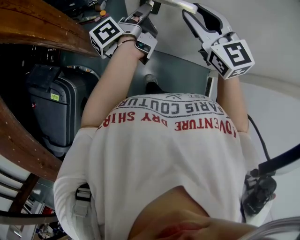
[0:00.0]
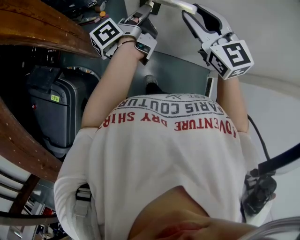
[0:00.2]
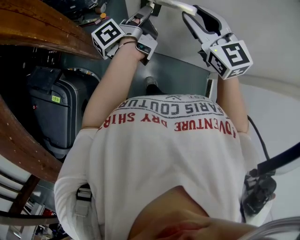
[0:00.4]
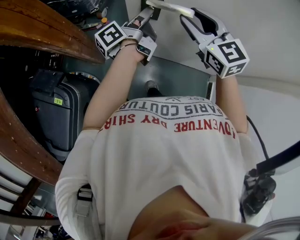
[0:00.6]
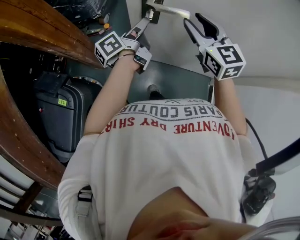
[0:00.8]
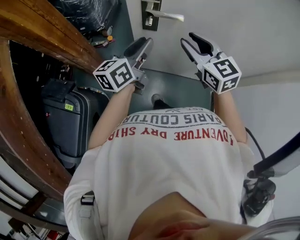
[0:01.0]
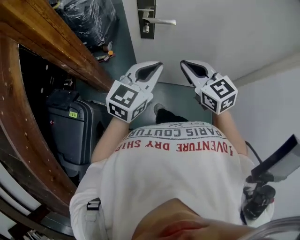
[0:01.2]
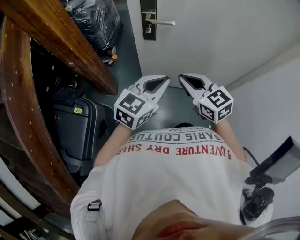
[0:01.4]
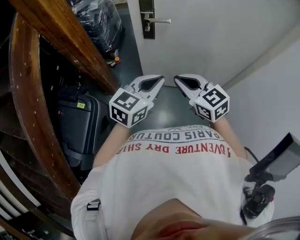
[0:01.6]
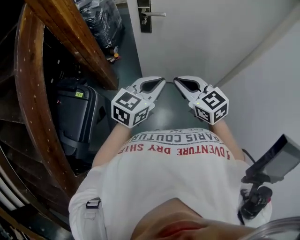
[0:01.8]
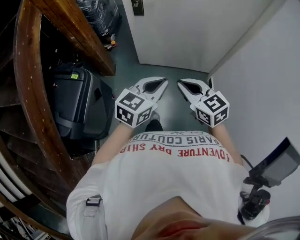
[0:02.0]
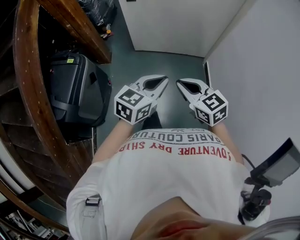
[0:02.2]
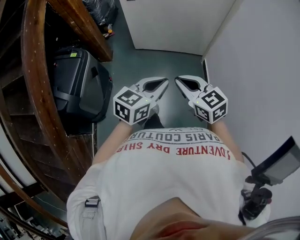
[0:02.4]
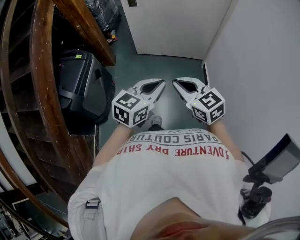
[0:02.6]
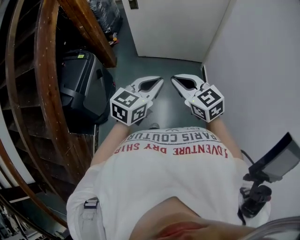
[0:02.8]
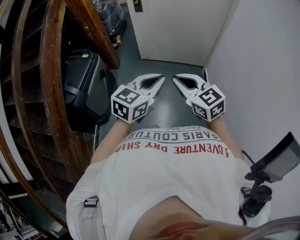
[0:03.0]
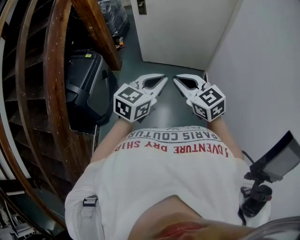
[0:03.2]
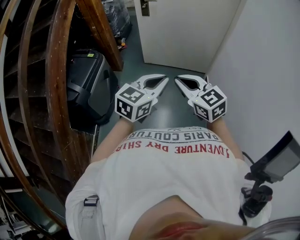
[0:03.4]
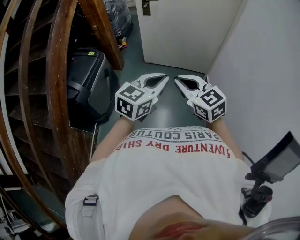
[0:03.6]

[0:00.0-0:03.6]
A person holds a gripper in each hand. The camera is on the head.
0.0 to 1.8 s: The pair of grippers is taken backward, roughly 50 cm. The right gripper closes. Meanwhile the left gripper rotates around the line of its fingers by some 80 degrees, clockwise from behind, and opens and closes again.
1.8 to 3.6 s: The two grippers travel together, backward, about 40 cm.

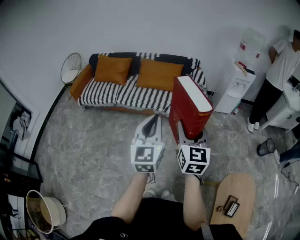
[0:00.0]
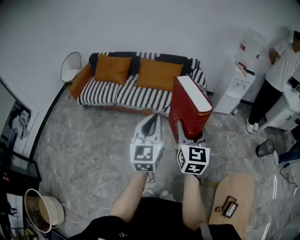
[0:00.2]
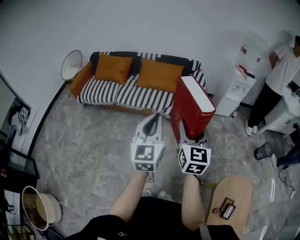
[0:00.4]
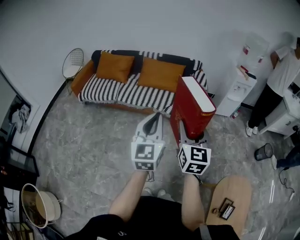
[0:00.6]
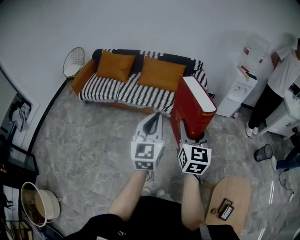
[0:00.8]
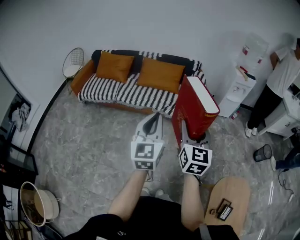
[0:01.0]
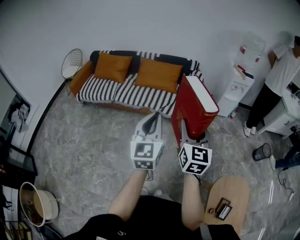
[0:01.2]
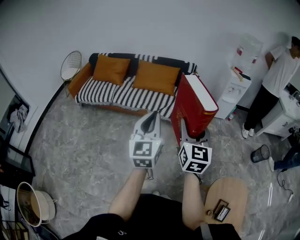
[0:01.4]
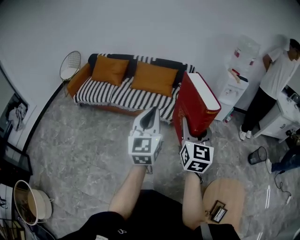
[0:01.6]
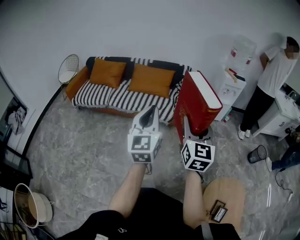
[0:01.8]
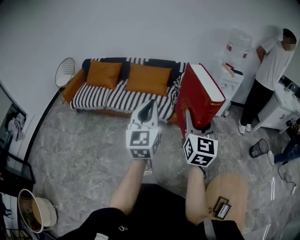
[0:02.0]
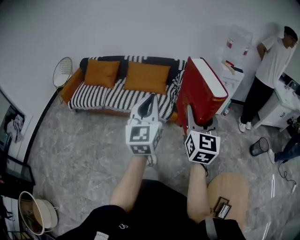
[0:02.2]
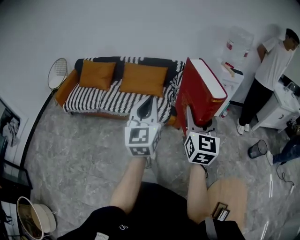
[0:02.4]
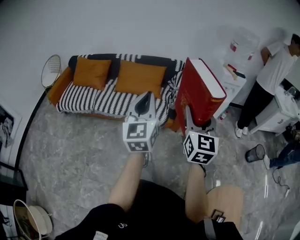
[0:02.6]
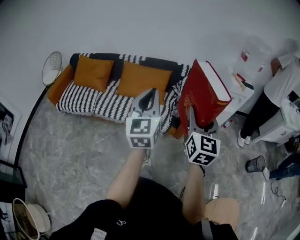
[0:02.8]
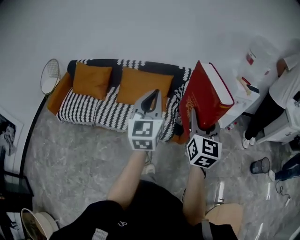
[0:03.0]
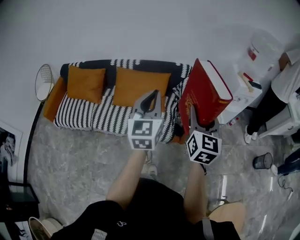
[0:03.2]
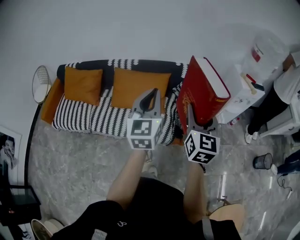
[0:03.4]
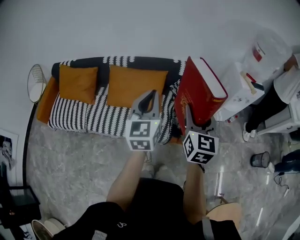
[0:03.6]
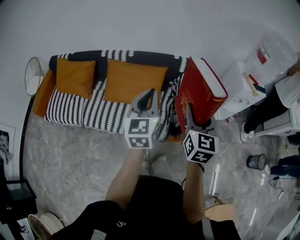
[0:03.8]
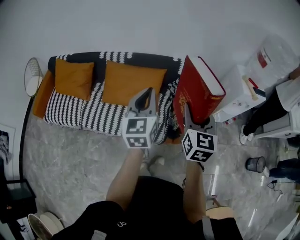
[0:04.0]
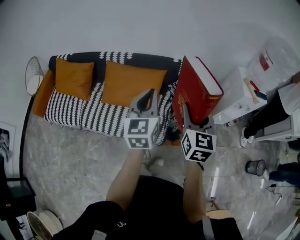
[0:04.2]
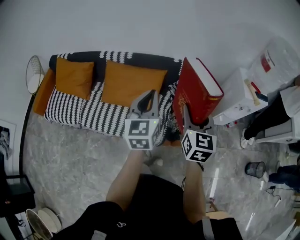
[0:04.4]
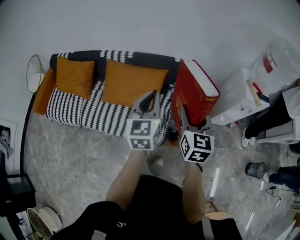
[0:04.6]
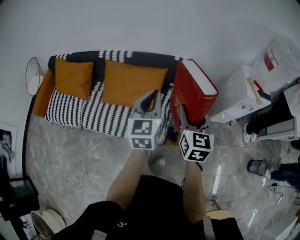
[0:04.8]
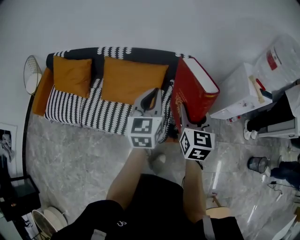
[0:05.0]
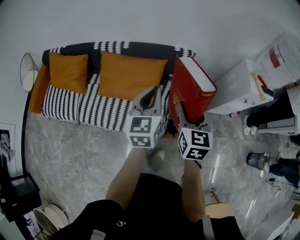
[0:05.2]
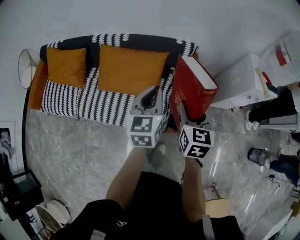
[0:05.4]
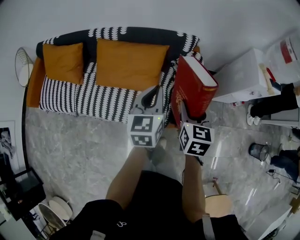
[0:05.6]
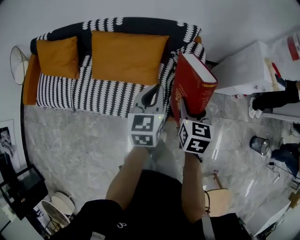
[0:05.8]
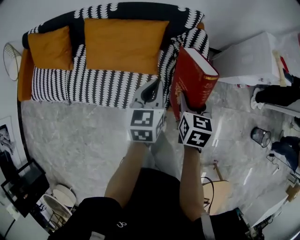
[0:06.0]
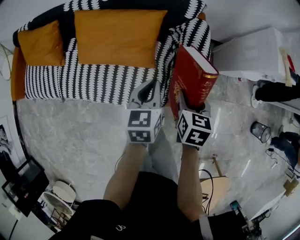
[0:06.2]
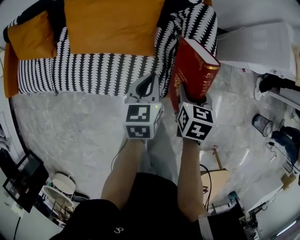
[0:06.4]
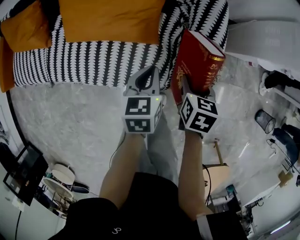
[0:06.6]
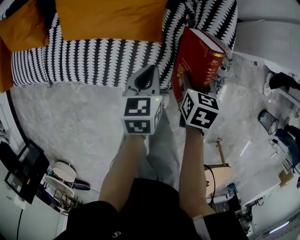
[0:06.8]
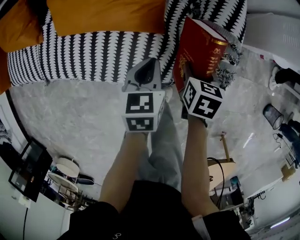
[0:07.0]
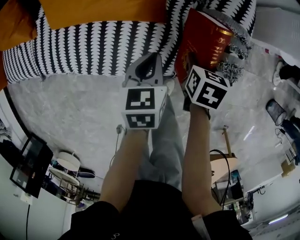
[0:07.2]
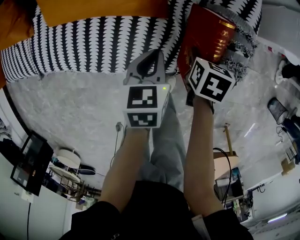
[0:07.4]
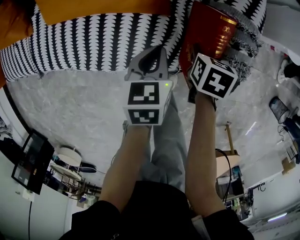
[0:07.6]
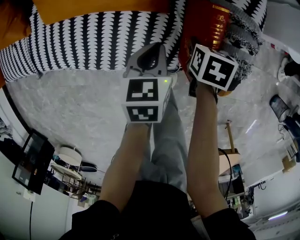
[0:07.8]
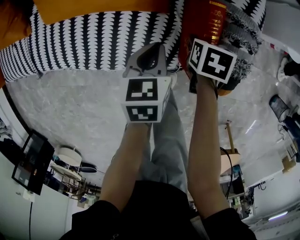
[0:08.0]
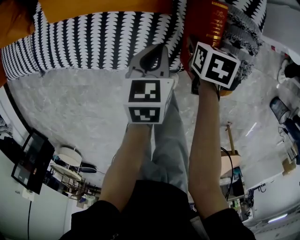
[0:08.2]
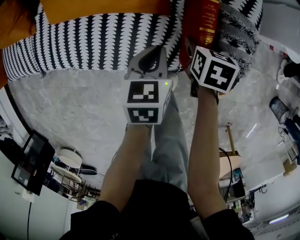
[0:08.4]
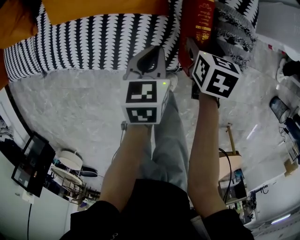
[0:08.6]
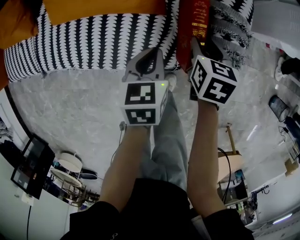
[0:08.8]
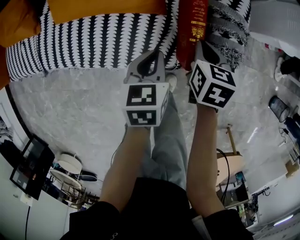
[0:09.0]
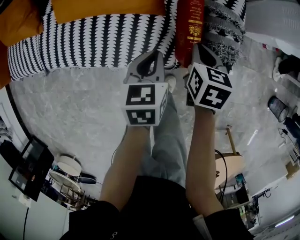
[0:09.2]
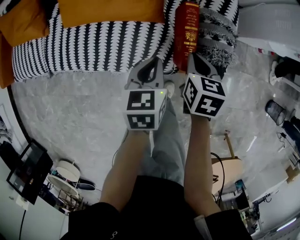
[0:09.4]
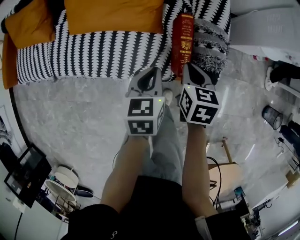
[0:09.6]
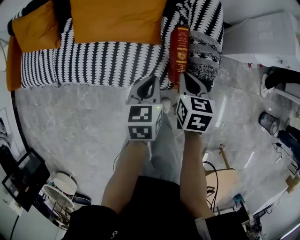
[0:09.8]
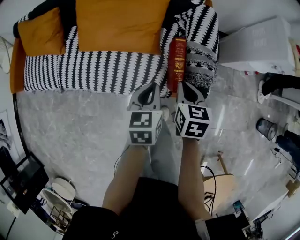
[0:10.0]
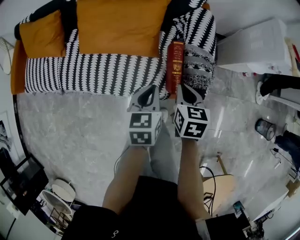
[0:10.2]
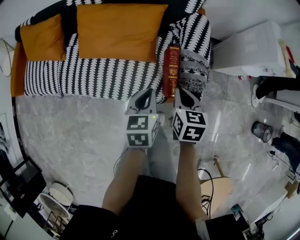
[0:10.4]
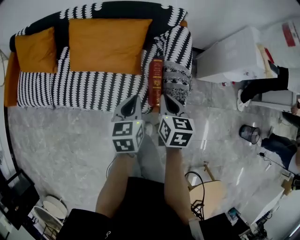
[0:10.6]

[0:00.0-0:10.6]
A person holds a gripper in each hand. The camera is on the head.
0.0 to 1.6 s: The two grippers go roughly 5 cm to the right.
1.6 to 3.0 s: Both grippers travel together forward, approximately 40 cm.
3.0 to 4.6 s: The left gripper heads forward and downward, covering about 25 cm. Meanwhile the right gripper heads forward, covering about 25 cm.
4.6 to 6.0 s: Both grippers move downward, roughly 20 cm. The right gripper swivels some 30 degrees; the left gripper rotates approximately 20 degrees.
6.0 to 7.6 s: The two grippers go about 30 cm downward. The left gripper swivels some 20 degrees. The right gripper swivels approximately 30 degrees.
7.6 to 9.0 s: The right gripper goes roughly 10 cm upward, and closes. Meanwhile the left gripper shifts by roughly 5 cm.
9.0 to 10.6 s: Both grippers travel together upward, approximately 20 cm.

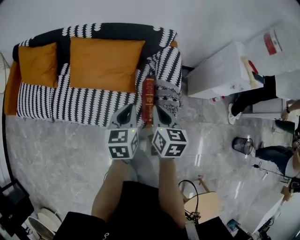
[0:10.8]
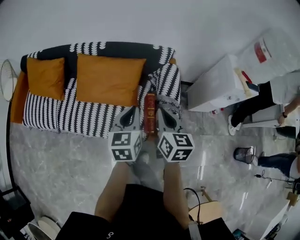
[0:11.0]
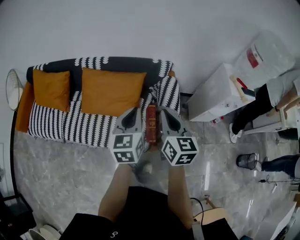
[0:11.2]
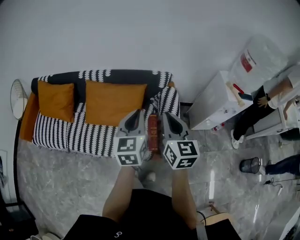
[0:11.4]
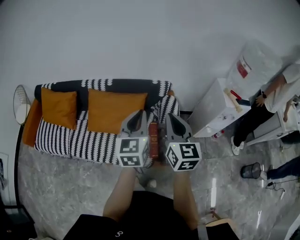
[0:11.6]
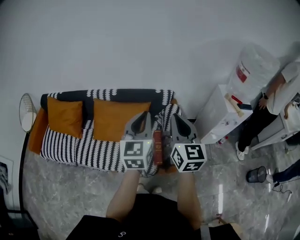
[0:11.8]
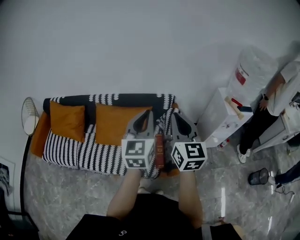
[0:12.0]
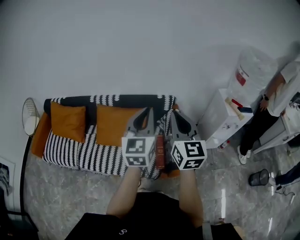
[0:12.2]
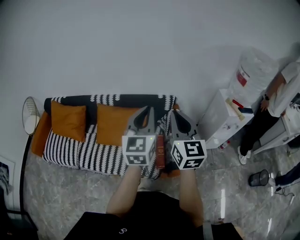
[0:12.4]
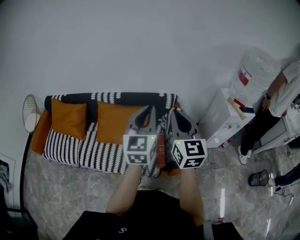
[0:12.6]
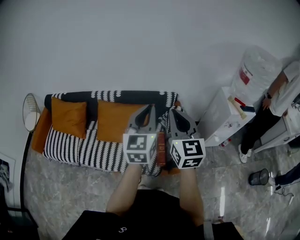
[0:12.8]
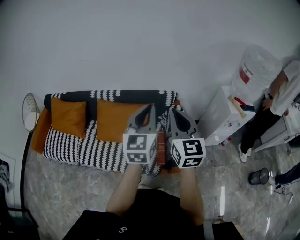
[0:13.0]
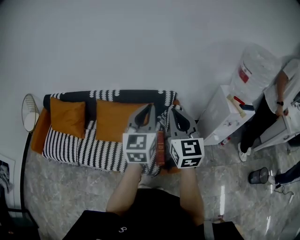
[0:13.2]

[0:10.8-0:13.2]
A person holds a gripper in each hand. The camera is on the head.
10.8 to 12.0 s: Both grippers travel together upward, about 30 cm. The left gripper rotates some 30 degrees; the right gripper tips its fingers upward by some 30 degrees.
12.0 to 13.2 s: There are only small adjustments of the grippers.

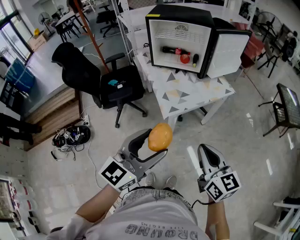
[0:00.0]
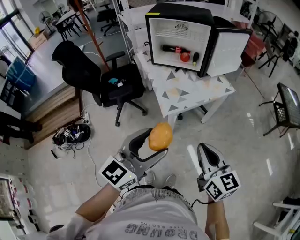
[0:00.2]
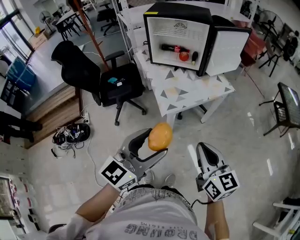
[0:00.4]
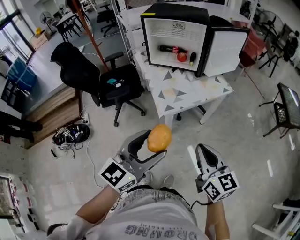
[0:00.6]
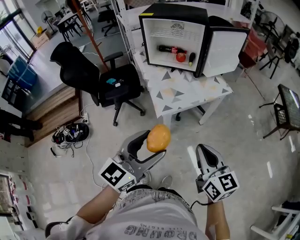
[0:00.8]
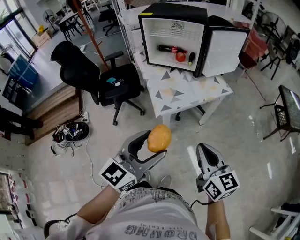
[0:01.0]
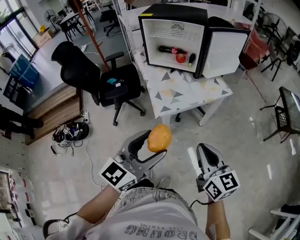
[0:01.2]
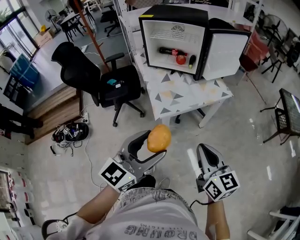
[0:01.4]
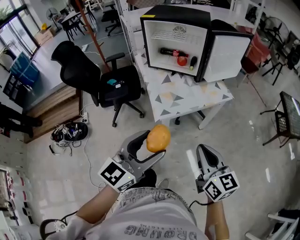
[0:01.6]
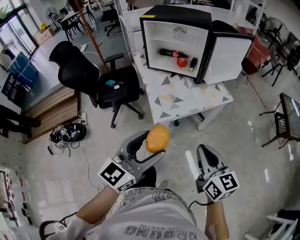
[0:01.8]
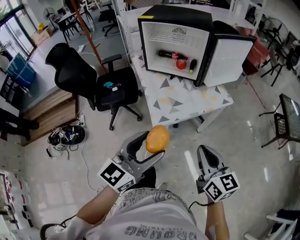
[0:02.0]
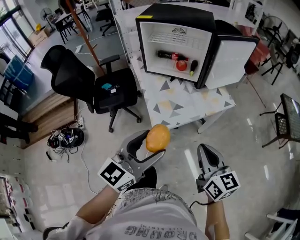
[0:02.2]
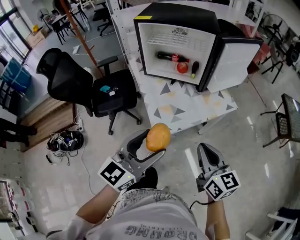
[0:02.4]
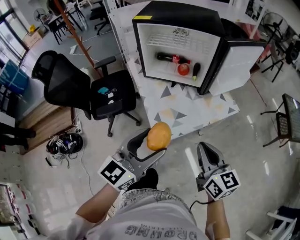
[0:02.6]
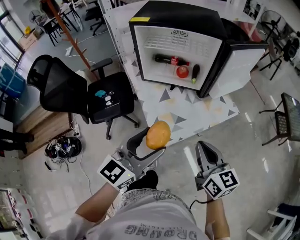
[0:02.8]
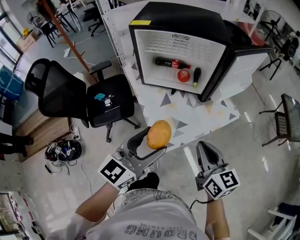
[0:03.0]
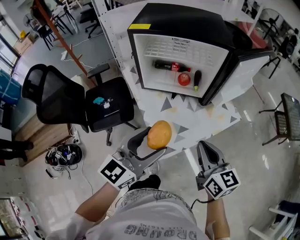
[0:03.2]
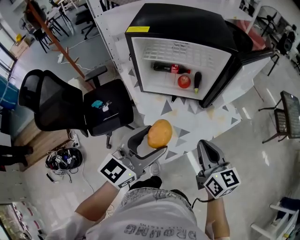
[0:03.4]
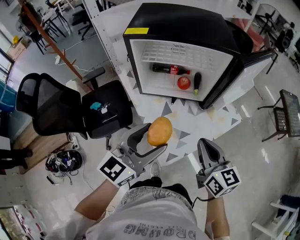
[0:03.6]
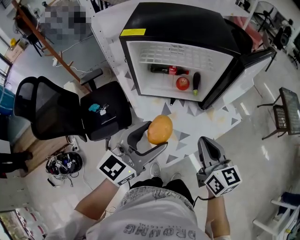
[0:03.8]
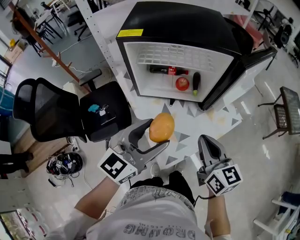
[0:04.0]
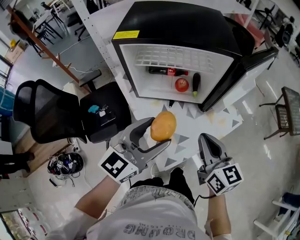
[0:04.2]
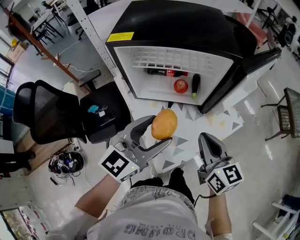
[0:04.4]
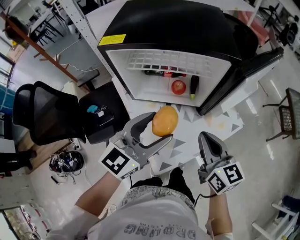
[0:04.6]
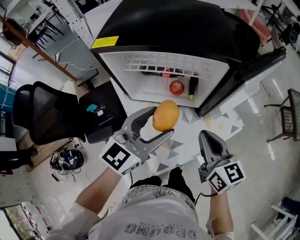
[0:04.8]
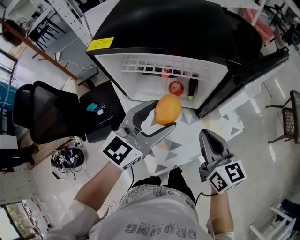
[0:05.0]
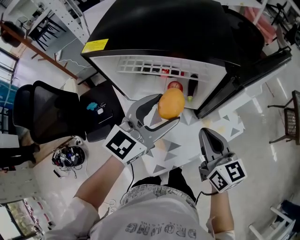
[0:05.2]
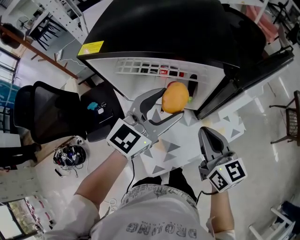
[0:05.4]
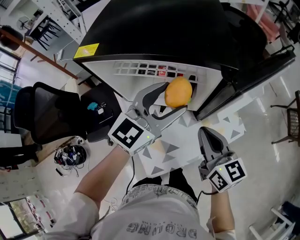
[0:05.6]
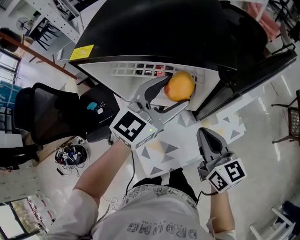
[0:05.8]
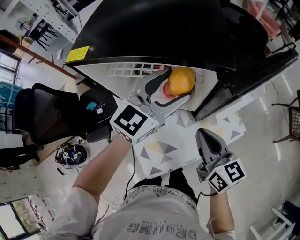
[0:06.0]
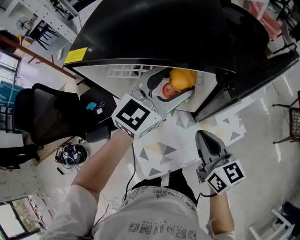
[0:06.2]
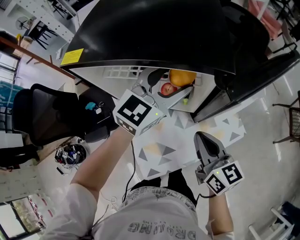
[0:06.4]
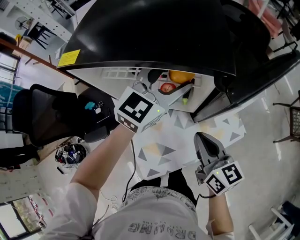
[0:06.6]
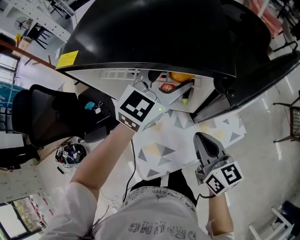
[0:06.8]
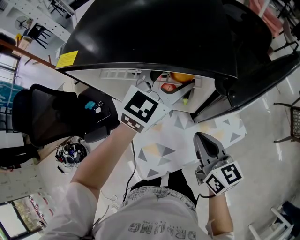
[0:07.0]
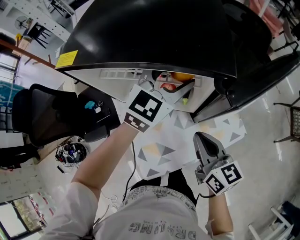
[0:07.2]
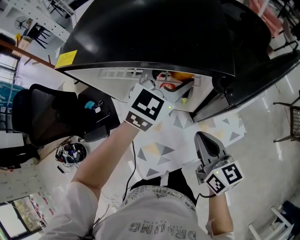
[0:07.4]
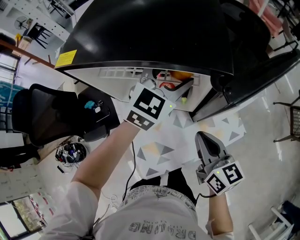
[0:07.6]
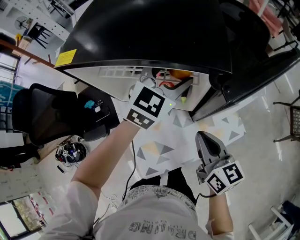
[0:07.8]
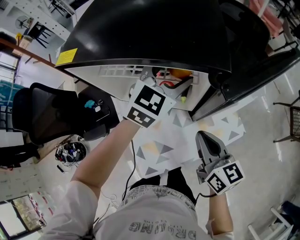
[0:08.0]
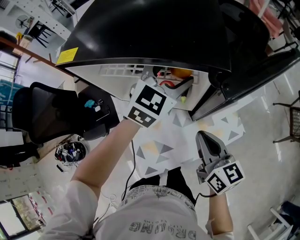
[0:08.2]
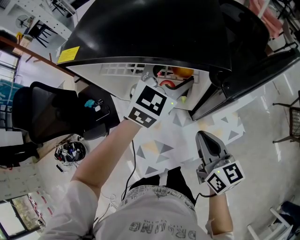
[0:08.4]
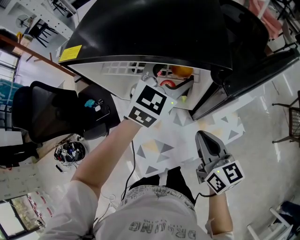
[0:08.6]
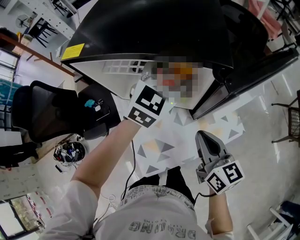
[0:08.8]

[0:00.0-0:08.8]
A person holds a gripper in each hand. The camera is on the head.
0.0 to 1.4 s: Both grippers move to the right, about 5 cm.
1.4 to 3.0 s: Both grippers move forward, roughly 25 cm.
3.0 to 4.4 s: Both grippers move forward, roughly 15 cm.
4.4 to 5.8 s: The left gripper heads forward and to the right, covering roughly 20 cm. Meanwhile the right gripper is displaced forward and to the right by roughly 10 cm.
5.8 to 7.4 s: The left gripper heads forward, covering about 10 cm.
7.4 to 8.8 s: The grippers make only small movements.
